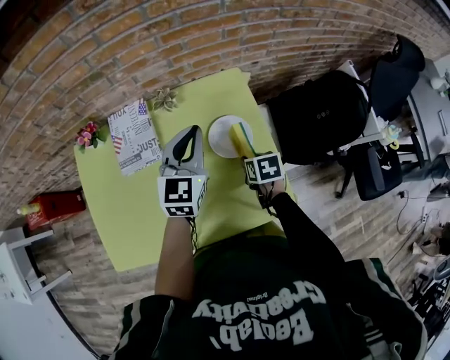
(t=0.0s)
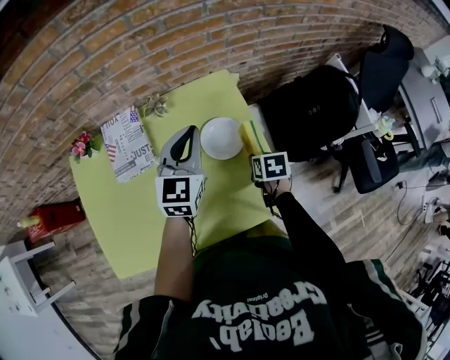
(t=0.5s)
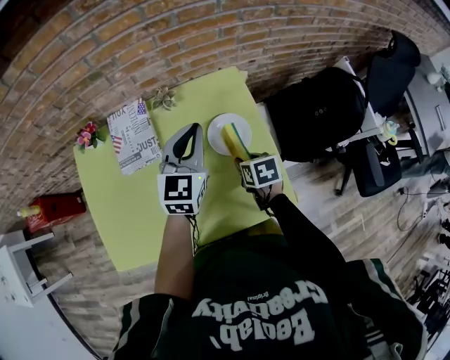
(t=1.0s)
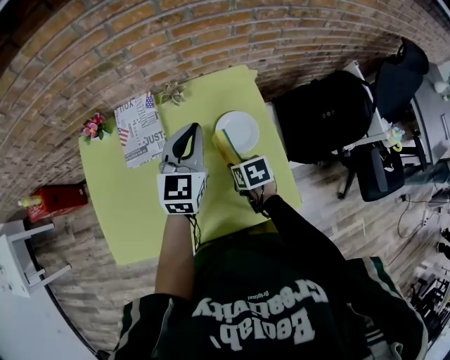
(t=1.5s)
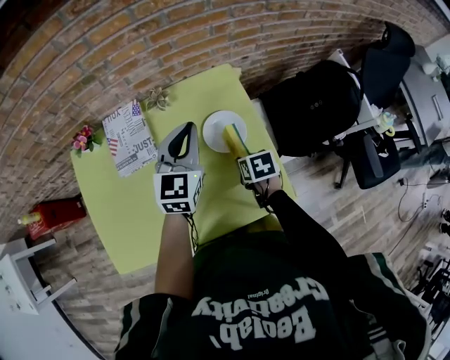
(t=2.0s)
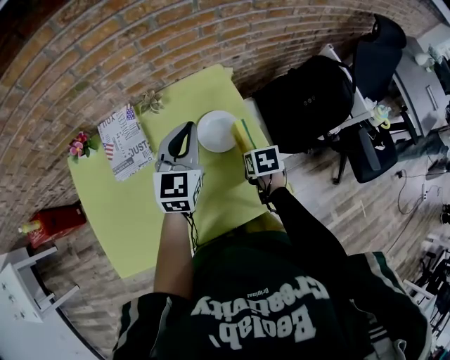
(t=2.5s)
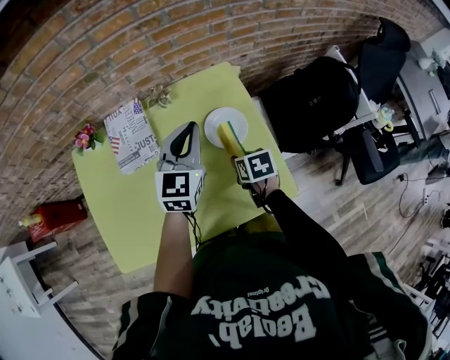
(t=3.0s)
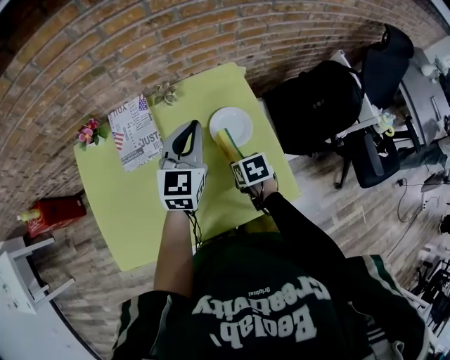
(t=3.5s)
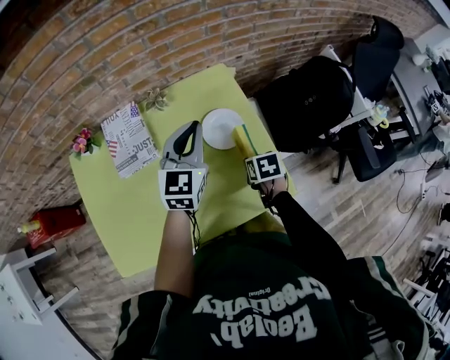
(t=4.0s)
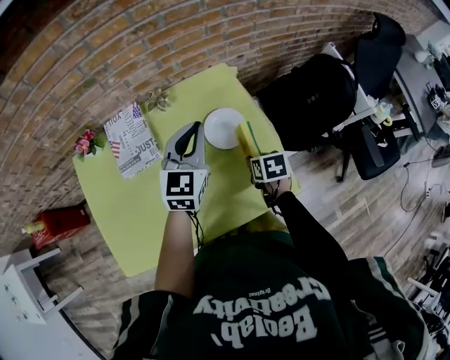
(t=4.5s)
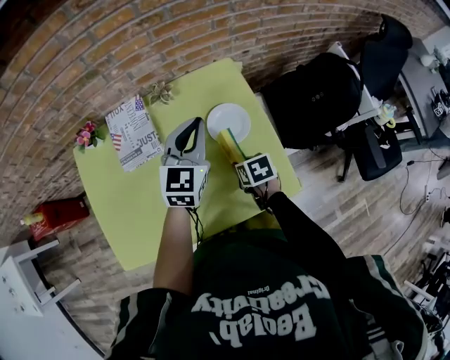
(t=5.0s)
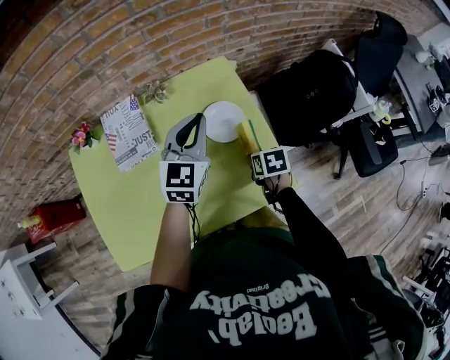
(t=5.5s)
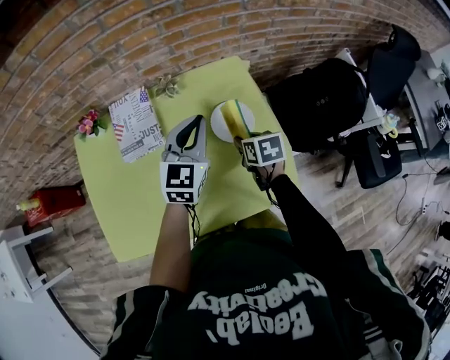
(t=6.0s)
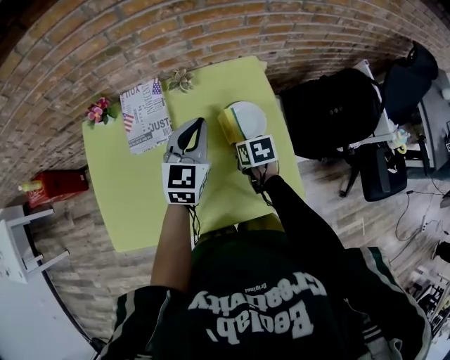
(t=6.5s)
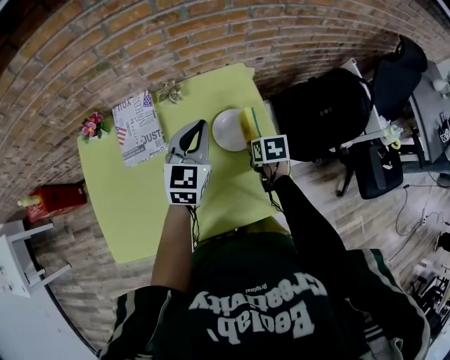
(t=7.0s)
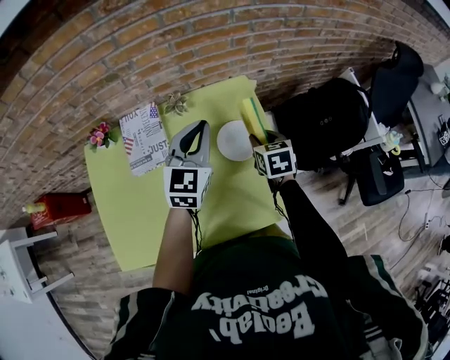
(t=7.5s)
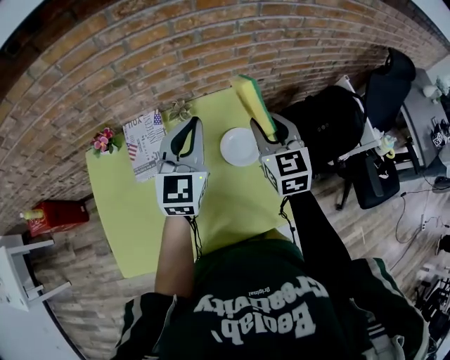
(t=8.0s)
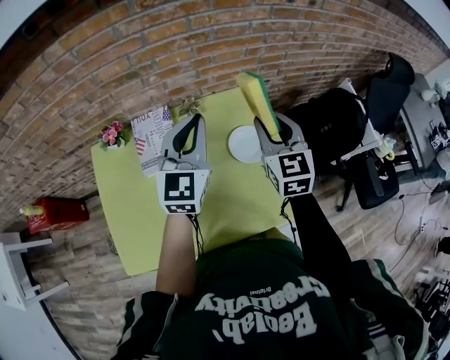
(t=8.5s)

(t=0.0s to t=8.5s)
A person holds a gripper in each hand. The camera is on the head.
t=0.0s - t=2.0s: The right gripper moves left and right over roughly 15 cm, changing direction 2 times.
t=2.0s - t=4.0s: The right gripper swings left and right, about 10 cm each way, with 2 reversals.
t=4.0s - t=6.5s: The left gripper ends up about 5 cm from where it was. The right gripper goes left and right, approximately 10 cm each way, reversing 2 times.
t=6.5s - t=8.5s: The right gripper goes about 30 cm upward, and angles its fingers upward, by some 40 degrees. Meanwhile the left gripper moves upward, about 15 cm.

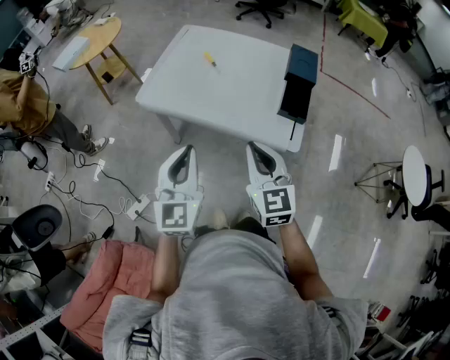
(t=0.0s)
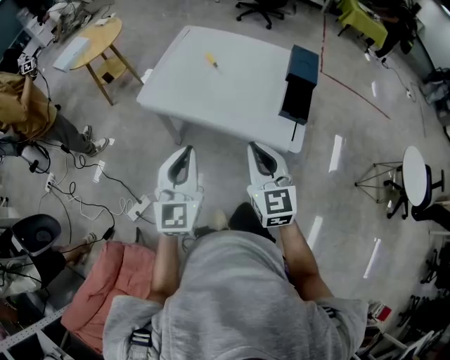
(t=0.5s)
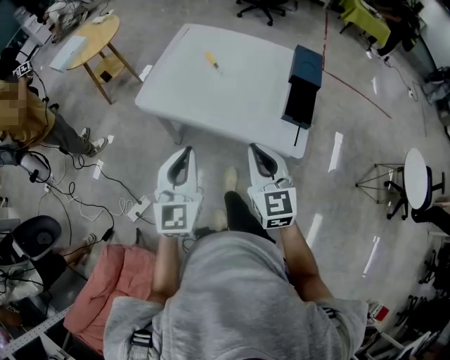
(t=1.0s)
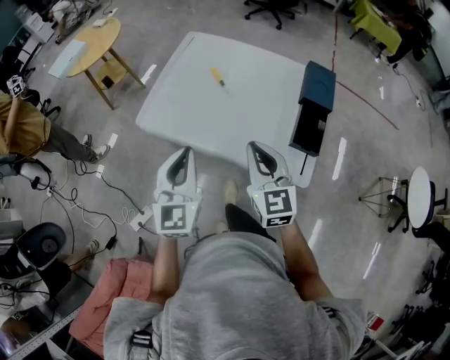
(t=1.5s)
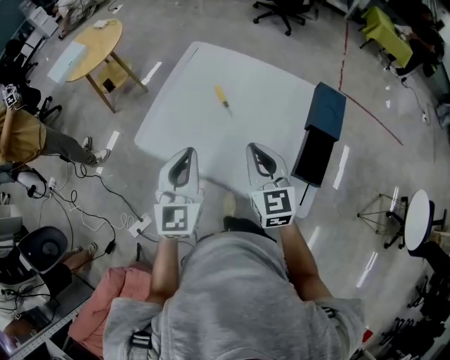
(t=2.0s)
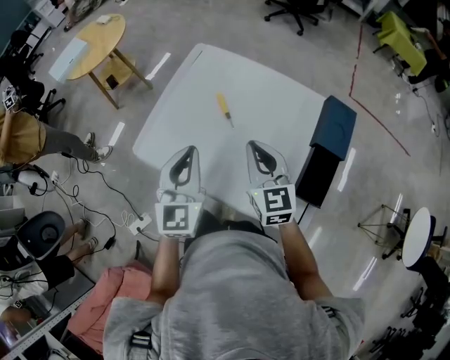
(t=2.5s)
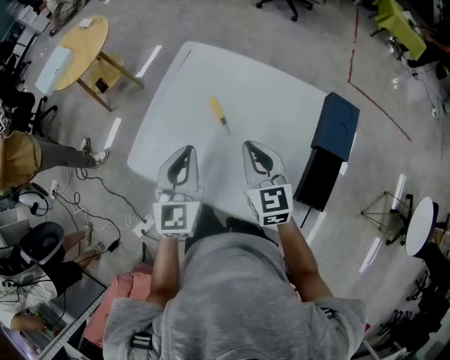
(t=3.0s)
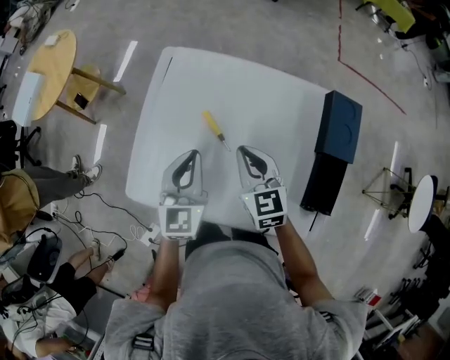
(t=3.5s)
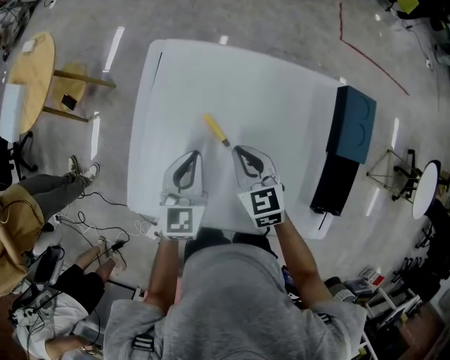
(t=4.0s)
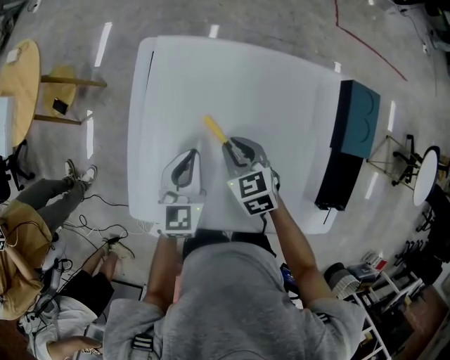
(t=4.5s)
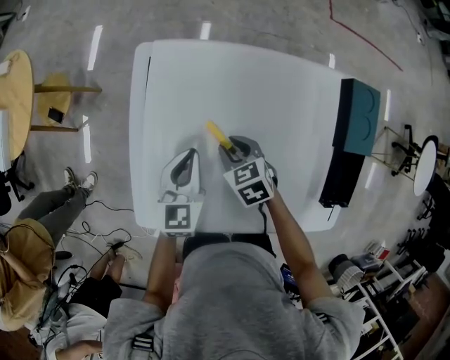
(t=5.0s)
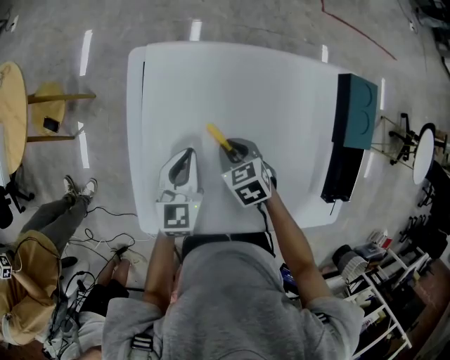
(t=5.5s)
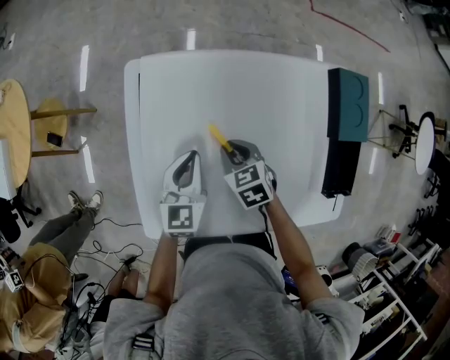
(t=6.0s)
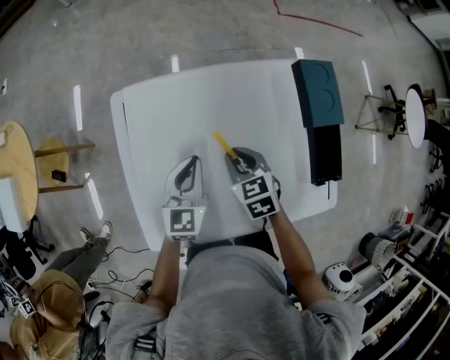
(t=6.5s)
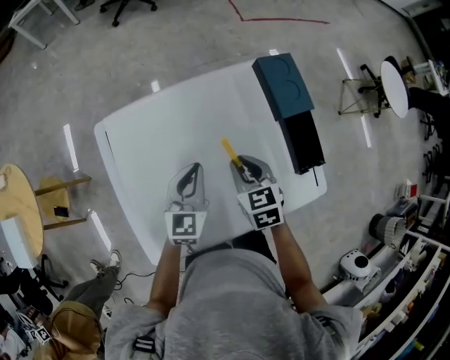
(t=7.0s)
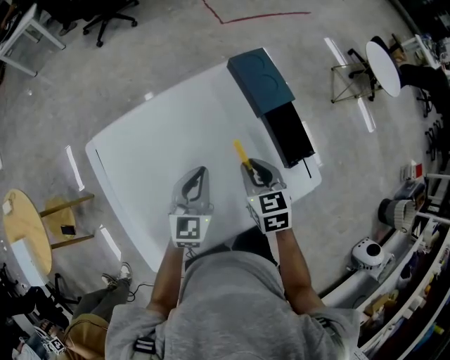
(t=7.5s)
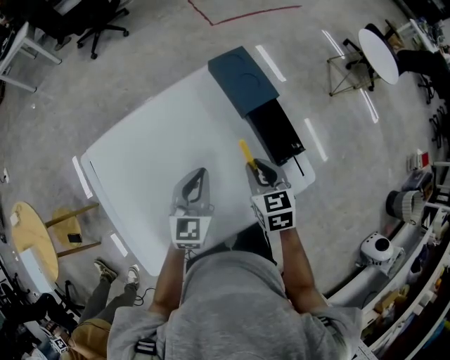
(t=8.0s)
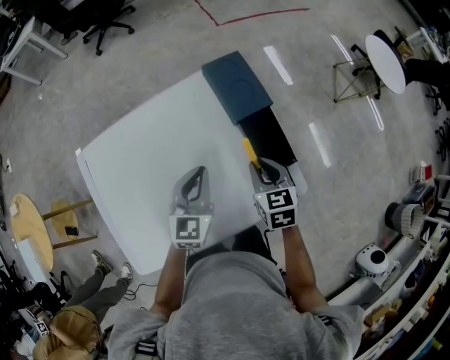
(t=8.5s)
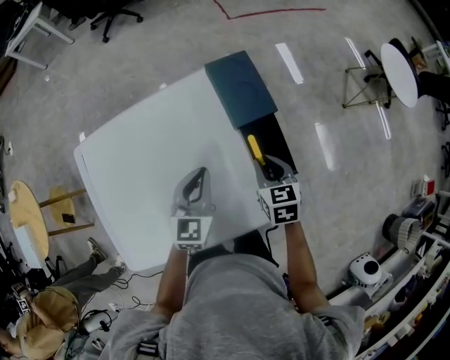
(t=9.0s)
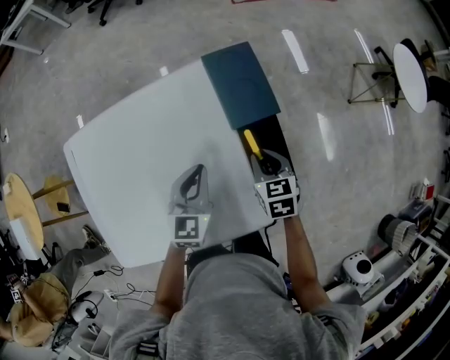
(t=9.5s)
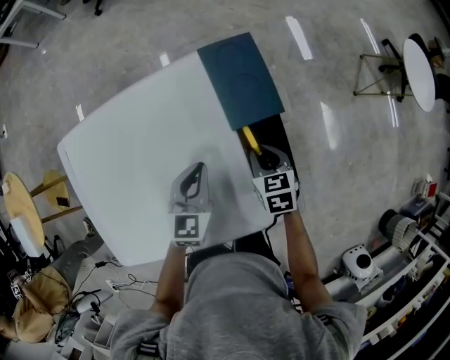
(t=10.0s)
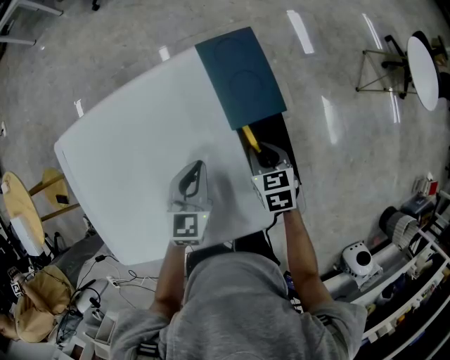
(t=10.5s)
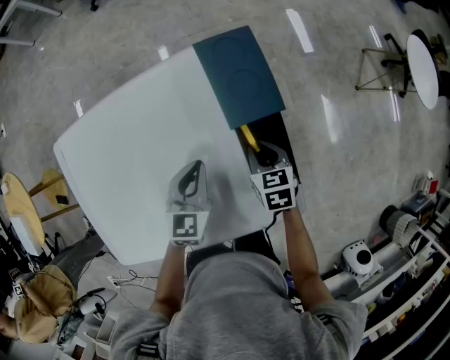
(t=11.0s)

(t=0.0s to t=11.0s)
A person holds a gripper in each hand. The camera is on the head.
t=0.0s - t=2.0s: Both grippers travel together forward, approximately 25 cm.
t=2.0s - t=3.5s: The grippers both shift forward and downward by approximately 25 cm.
t=3.5s - t=5.5s: The left gripper travels downward and forward by roughly 15 cm. The right gripper shifts approximately 20 cm downward, and angles its fingers downward, by approximately 30 degrees.
t=5.5s - t=7.5s: The right gripper ends up about 30 cm from where it was, and rotates approximately 50 degrees. Meanwhile the left gripper shifts by about 25 cm, and changes its angle by some 30 degrees.
t=7.5s - t=9.0s: The right gripper heads to the right and forward, covering approximately 20 cm, while the left gripper goes about 15 cm to the right.
t=9.0s - t=11.0s: The grippers both shift downward by about 10 cm.

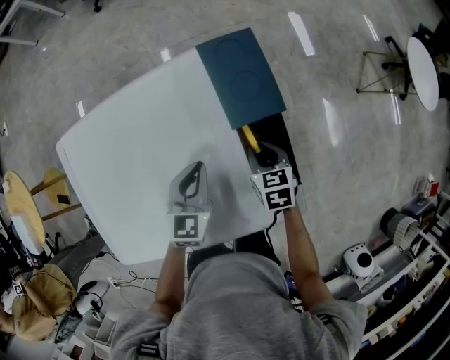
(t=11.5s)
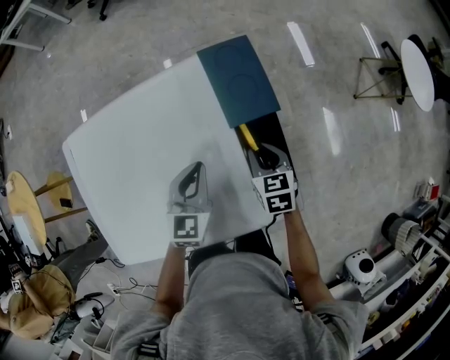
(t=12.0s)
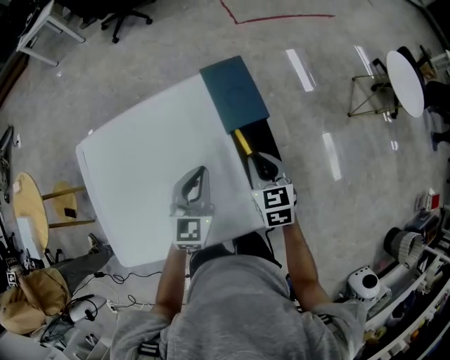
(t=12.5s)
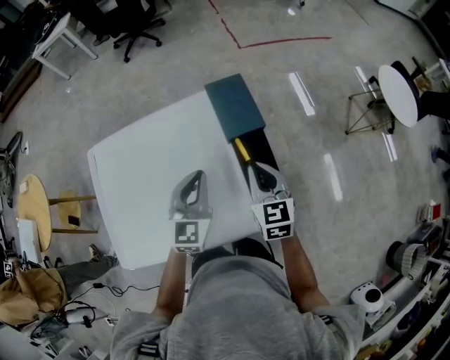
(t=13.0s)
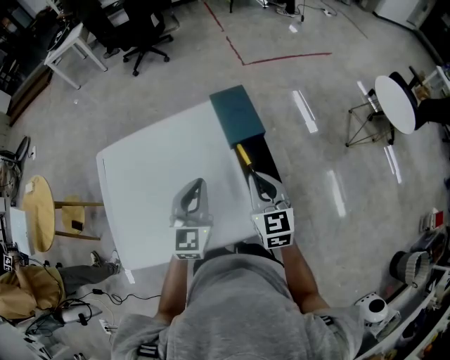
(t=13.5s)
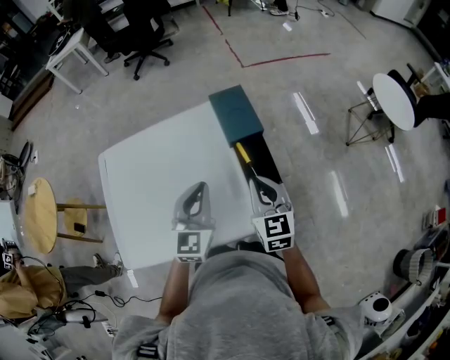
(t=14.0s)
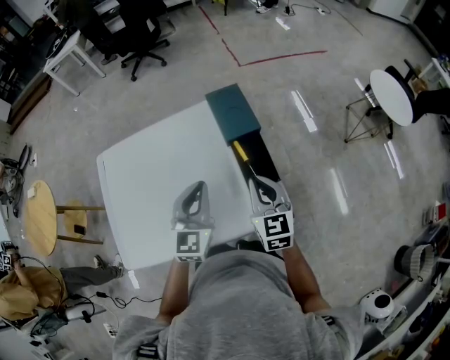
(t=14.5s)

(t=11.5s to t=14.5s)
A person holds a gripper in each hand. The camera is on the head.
t=11.5s - t=13.0s: The two grippers go roughly 15 cm upward. The right gripper rotates about 30 degrees, and closes its fingers.
t=13.0s - t=14.5s: Both grippers move backward, some 5 cm.

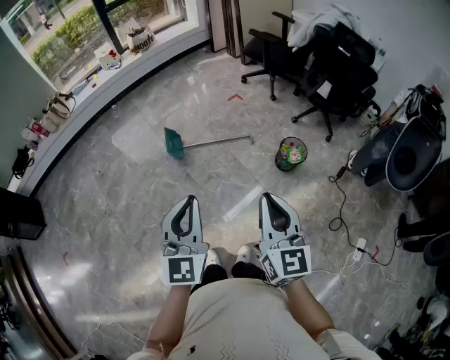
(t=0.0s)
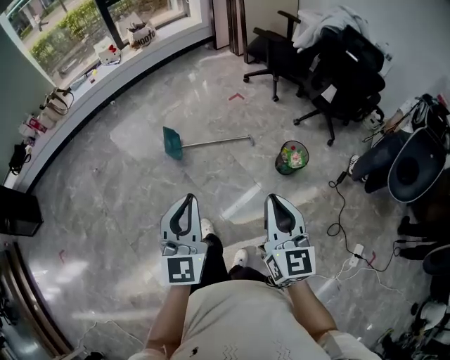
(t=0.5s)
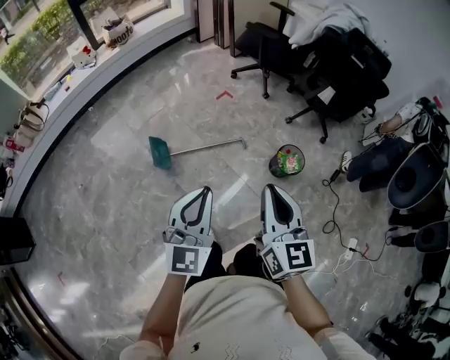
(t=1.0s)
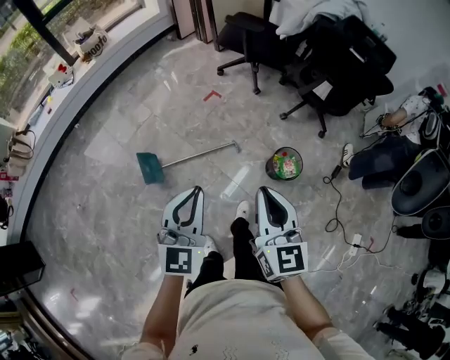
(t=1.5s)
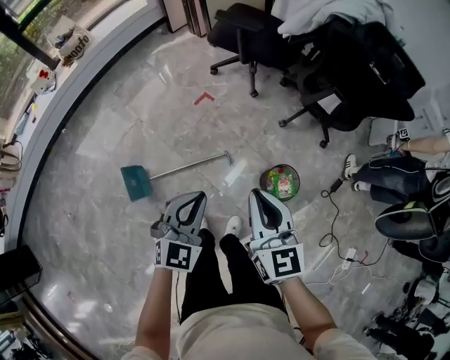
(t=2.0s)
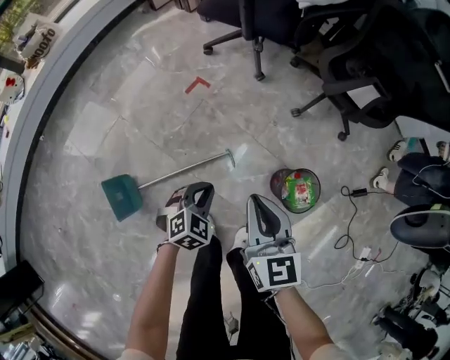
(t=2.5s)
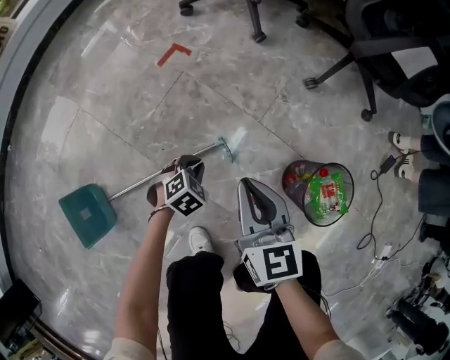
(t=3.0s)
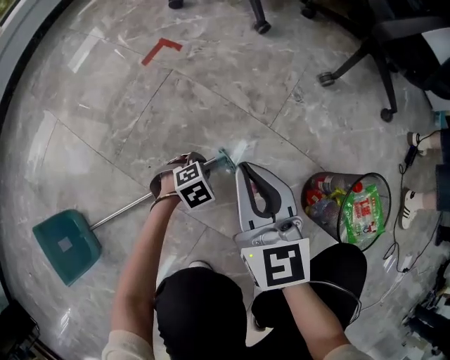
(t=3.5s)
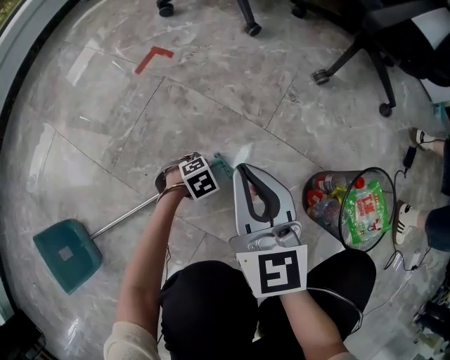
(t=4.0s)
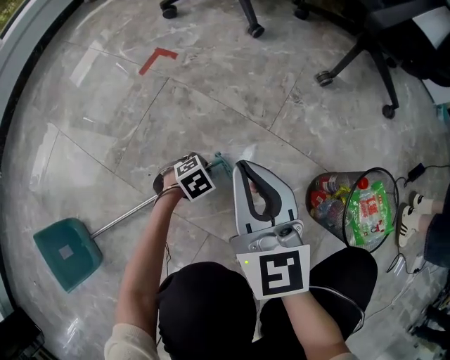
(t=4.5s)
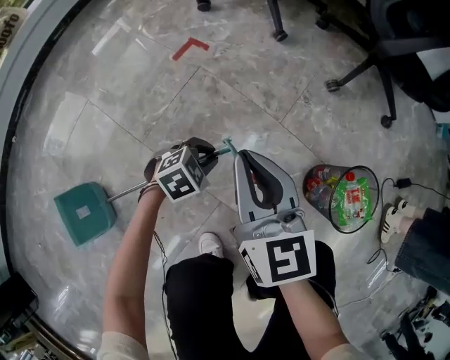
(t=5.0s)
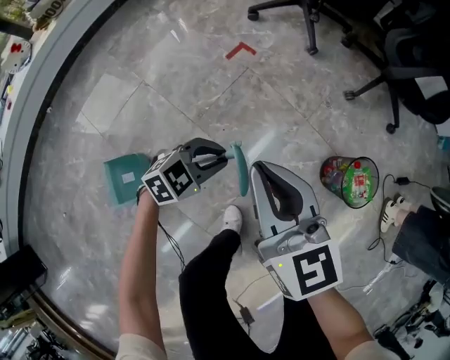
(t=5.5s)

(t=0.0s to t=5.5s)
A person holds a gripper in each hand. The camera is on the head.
t=0.0s - t=2.0s: The two grippers travel together, forward, approximately 60 cm. The left gripper rotates roughly 40 degrees.
t=2.0s - t=3.5s: The grippers both shift downward by some 80 cm. The left gripper tips its fingers downward by roughly 50 degrees, and opens its fingers.
t=3.5s - t=5.5s: Both grippers move upward, roughly 40 cm. The left gripper tips its fingers upward by approximately 30 degrees.
